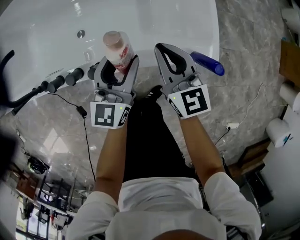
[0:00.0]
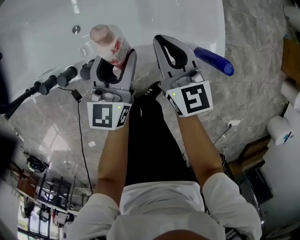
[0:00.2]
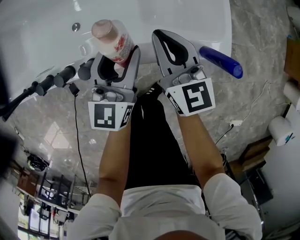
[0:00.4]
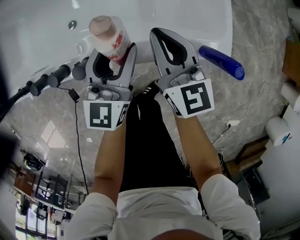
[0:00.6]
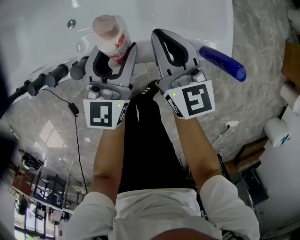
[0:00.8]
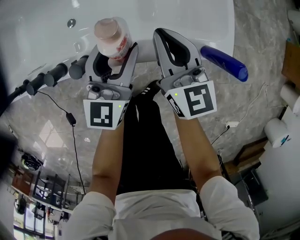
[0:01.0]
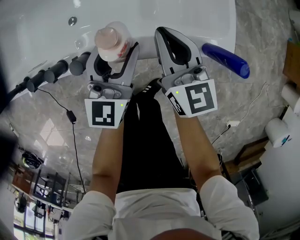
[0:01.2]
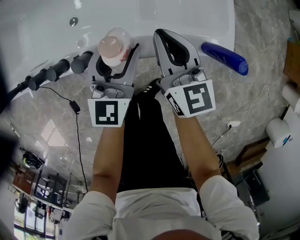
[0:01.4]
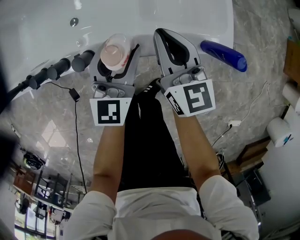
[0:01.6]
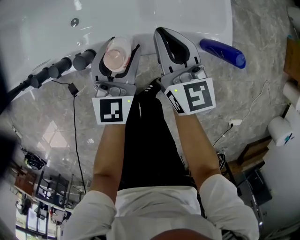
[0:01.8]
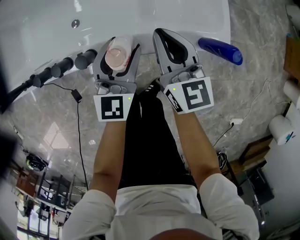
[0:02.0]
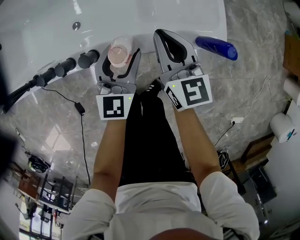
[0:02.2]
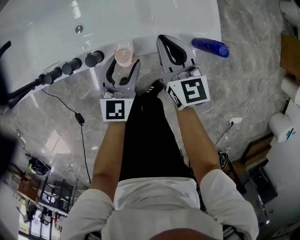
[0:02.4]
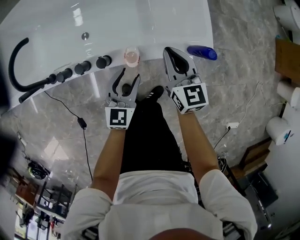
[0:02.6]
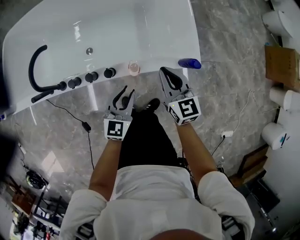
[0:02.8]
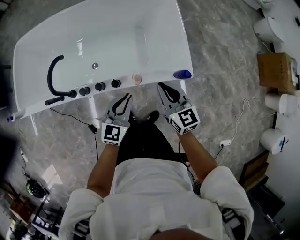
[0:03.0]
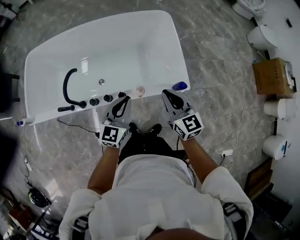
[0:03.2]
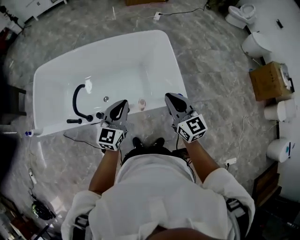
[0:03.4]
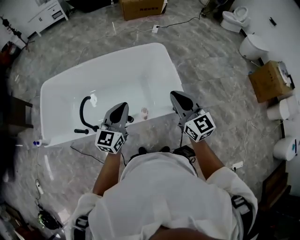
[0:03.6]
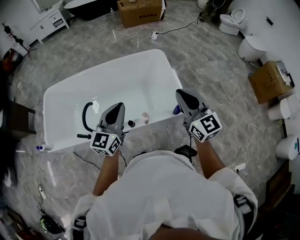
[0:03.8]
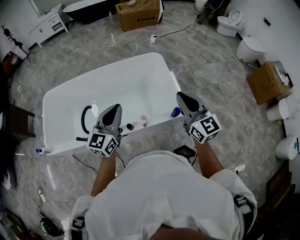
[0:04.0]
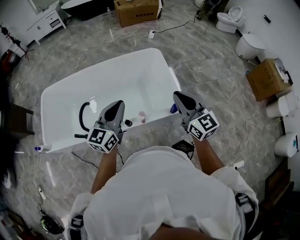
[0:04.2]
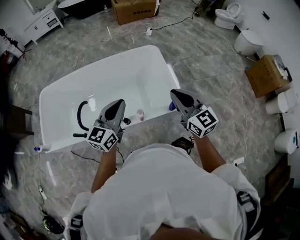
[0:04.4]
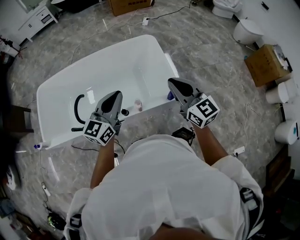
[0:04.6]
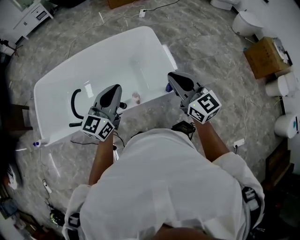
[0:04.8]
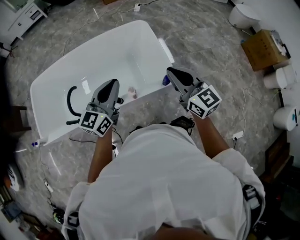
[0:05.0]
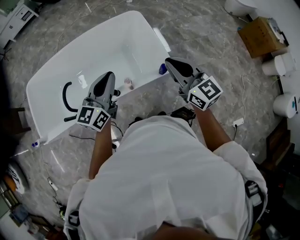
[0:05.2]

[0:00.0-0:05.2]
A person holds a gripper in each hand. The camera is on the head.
0:00.0 to 0:01.8: The grippers both shift downward by approximately 5 cm.
0:01.8 to 0:03.4: The two grippers go some 35 cm upward. The left gripper closes up.
0:03.4 to 0:05.2: The right gripper is displaced upward and to the right by about 10 cm. Meanwhile the left gripper heads upward, covering approximately 10 cm.

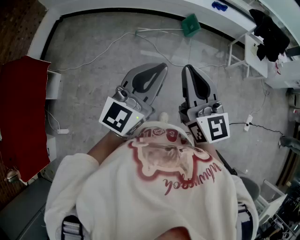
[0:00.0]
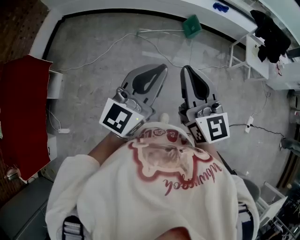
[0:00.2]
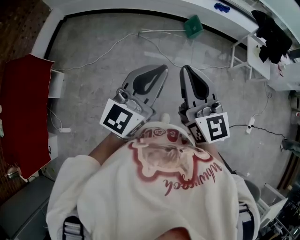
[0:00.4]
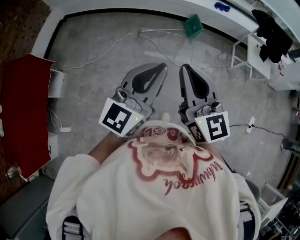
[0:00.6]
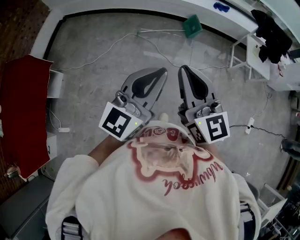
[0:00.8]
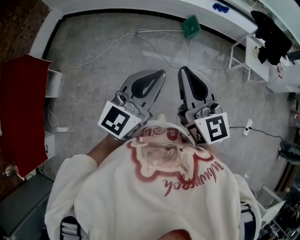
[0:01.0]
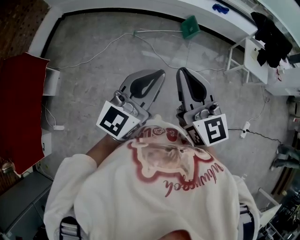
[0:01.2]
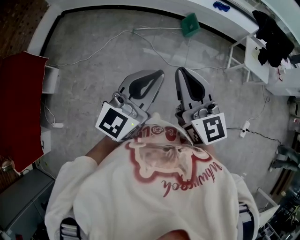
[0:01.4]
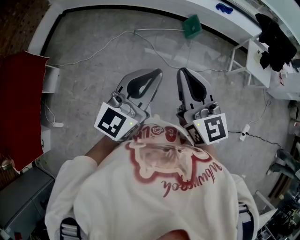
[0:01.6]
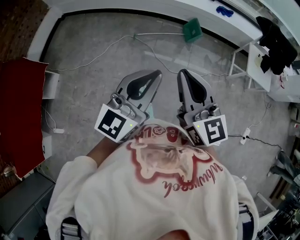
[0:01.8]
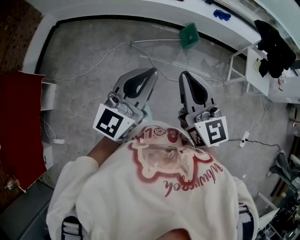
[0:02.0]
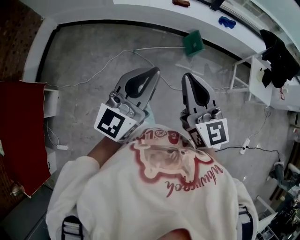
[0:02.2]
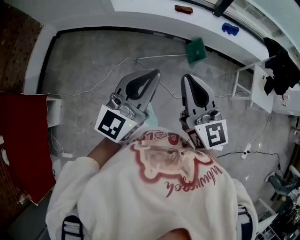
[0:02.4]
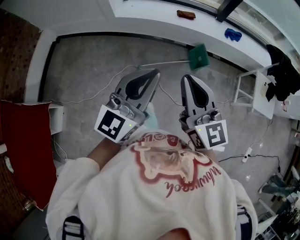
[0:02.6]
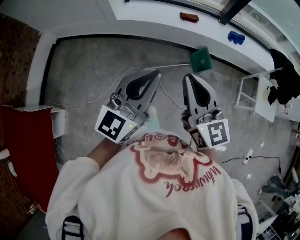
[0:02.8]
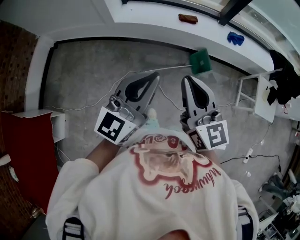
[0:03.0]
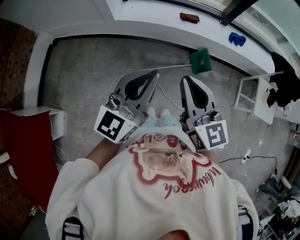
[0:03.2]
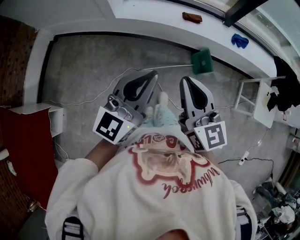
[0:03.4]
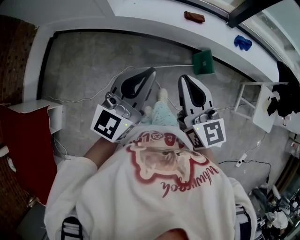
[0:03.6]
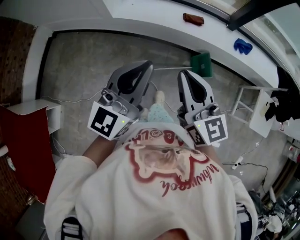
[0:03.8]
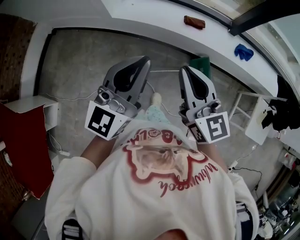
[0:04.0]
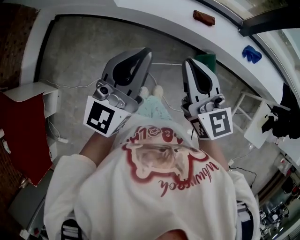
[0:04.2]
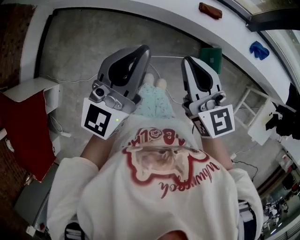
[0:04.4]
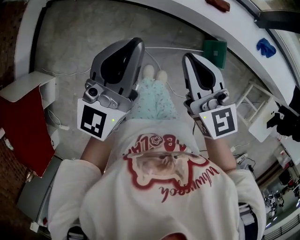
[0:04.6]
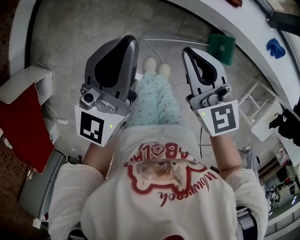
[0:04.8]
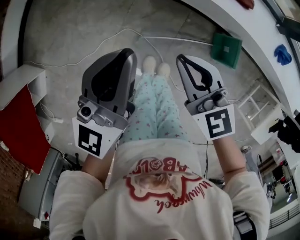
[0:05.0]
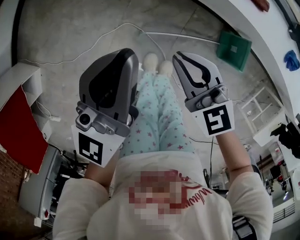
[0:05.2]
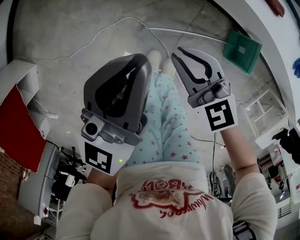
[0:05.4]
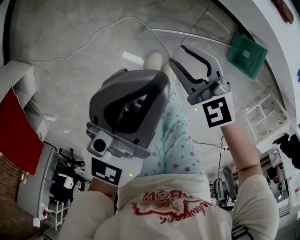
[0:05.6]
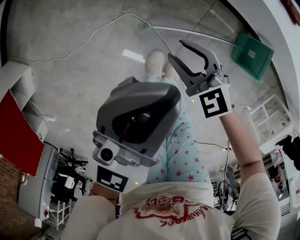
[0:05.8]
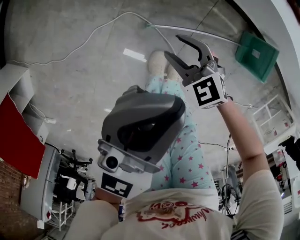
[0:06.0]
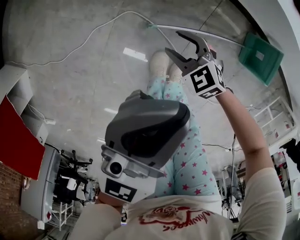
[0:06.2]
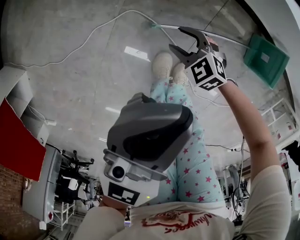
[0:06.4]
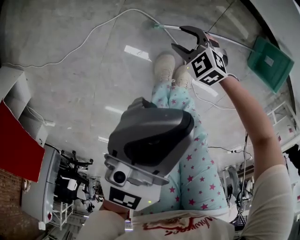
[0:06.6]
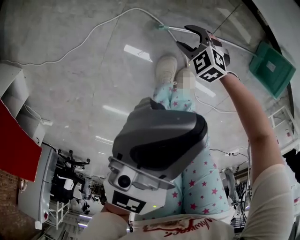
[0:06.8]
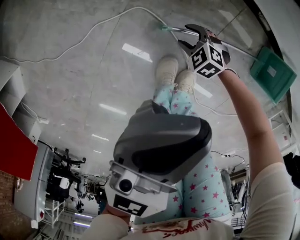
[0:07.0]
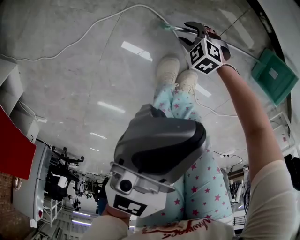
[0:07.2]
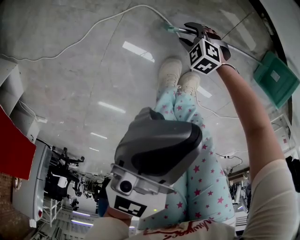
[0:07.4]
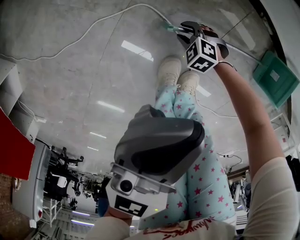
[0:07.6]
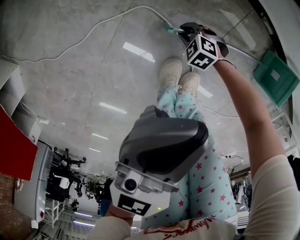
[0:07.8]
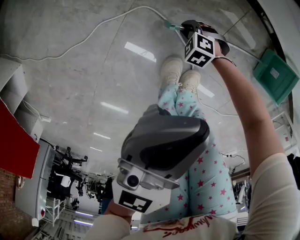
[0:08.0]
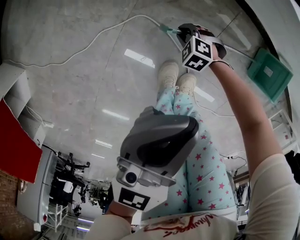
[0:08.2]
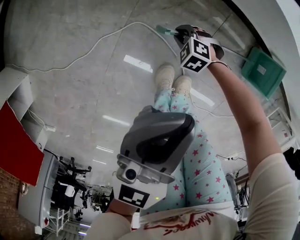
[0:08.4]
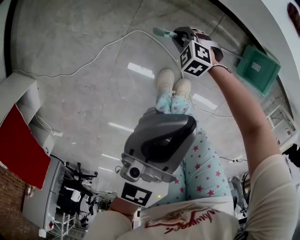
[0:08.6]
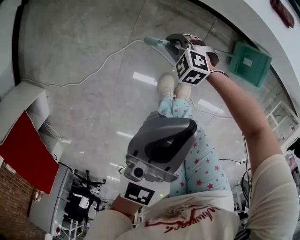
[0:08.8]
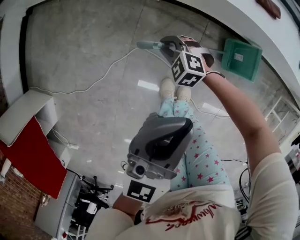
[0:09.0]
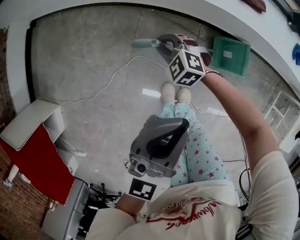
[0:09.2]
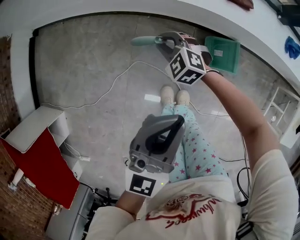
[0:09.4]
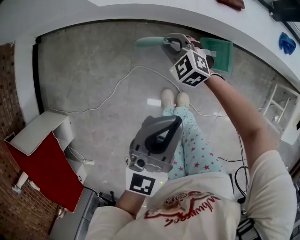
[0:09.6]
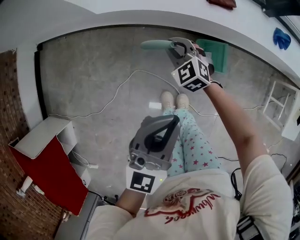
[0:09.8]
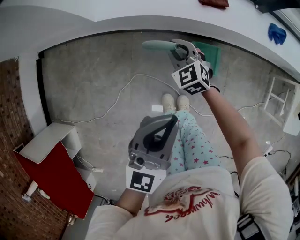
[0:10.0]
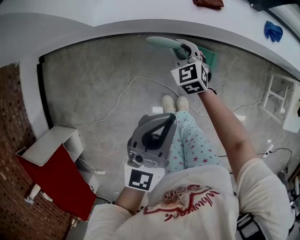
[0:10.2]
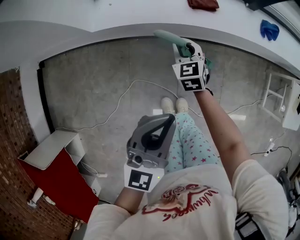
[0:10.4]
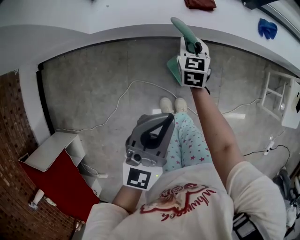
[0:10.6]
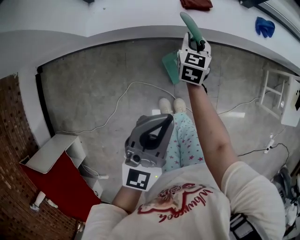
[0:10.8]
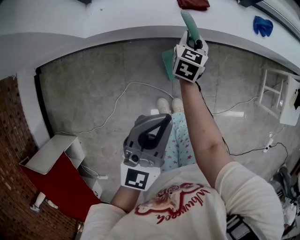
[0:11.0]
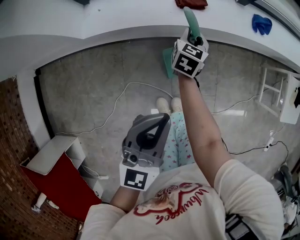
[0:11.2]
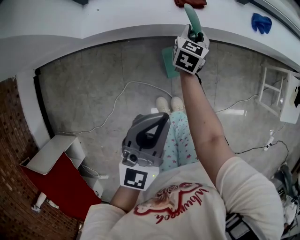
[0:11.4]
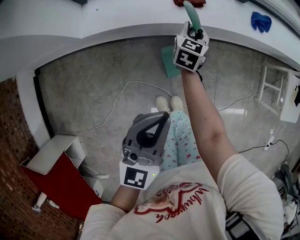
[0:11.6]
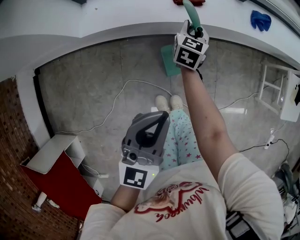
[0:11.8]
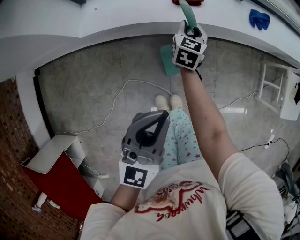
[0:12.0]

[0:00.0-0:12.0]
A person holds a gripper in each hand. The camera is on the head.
0:00.0 to 0:01.6: Both grippers travel together to the right, about 10 cm.
0:01.6 to 0:03.0: The pair of grippers is taken forward, roughly 50 cm.
0:03.0 to 0:04.4: The two grippers go some 25 cm forward.
0:04.4 to 0:06.0: The left gripper is displaced downward by about 35 cm. The right gripper travels downward by about 60 cm, points its fingers about 30 degrees further downward, and opens.
0:06.0 to 0:07.6: The right gripper is displaced downward by some 30 cm, and changes its angle by about 40 degrees; the left gripper goes roughly 15 cm downward and to the left.
0:07.6 to 0:09.0: The right gripper moves upward, roughly 30 cm, and closes its fingers. The left gripper heads upward and to the right, covering some 20 cm.
0:09.0 to 0:10.4: The right gripper ends up some 30 cm from where it was, and swivels roughly 60 degrees, while the left gripper is displaced upward by about 10 cm, and turns by approximately 20 degrees.
0:10.4 to 0:12.0: The right gripper goes approximately 15 cm forward and to the right, and rotates approximately 40 degrees.

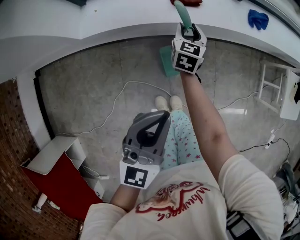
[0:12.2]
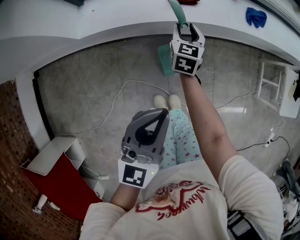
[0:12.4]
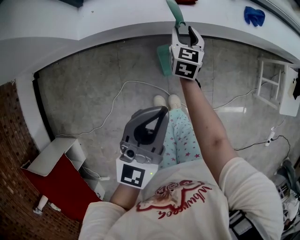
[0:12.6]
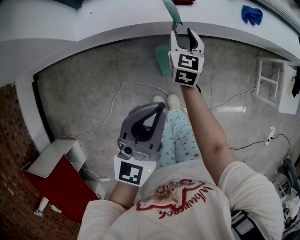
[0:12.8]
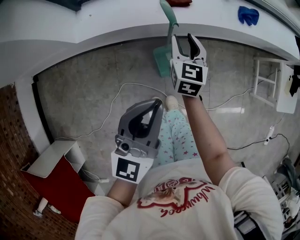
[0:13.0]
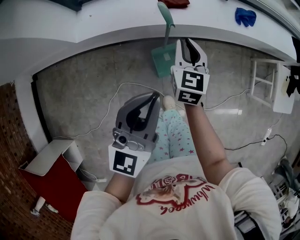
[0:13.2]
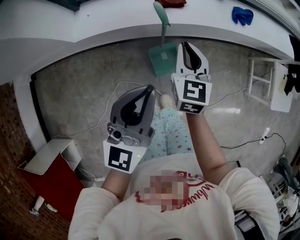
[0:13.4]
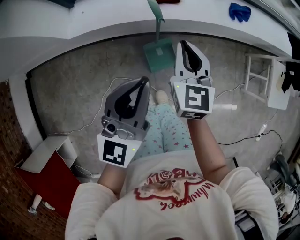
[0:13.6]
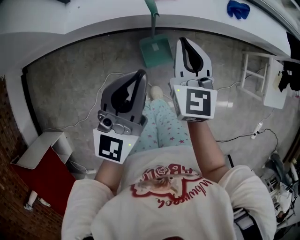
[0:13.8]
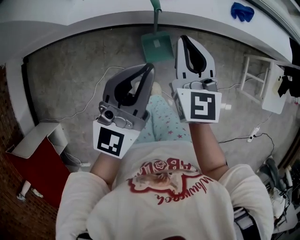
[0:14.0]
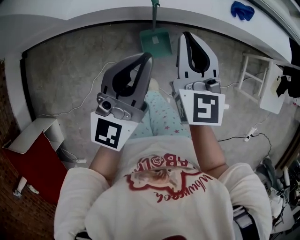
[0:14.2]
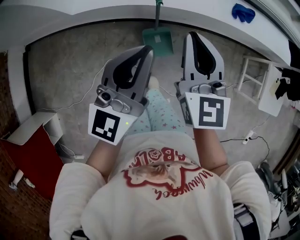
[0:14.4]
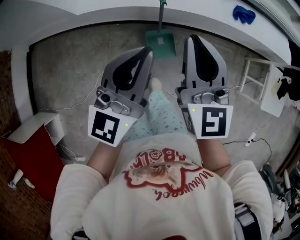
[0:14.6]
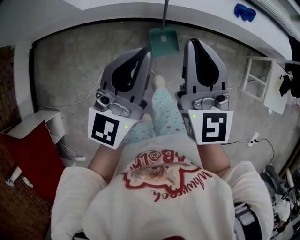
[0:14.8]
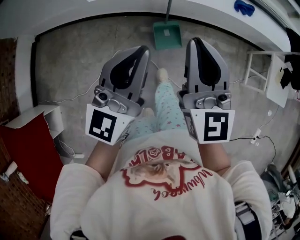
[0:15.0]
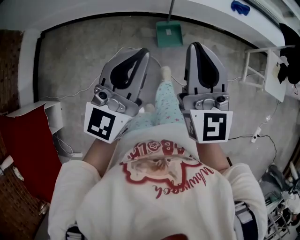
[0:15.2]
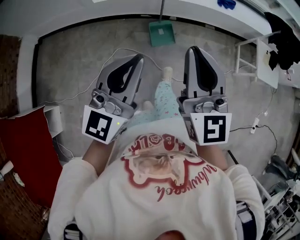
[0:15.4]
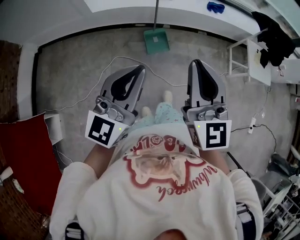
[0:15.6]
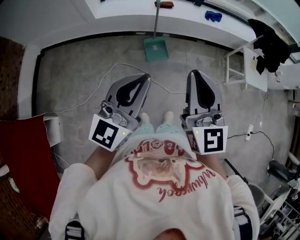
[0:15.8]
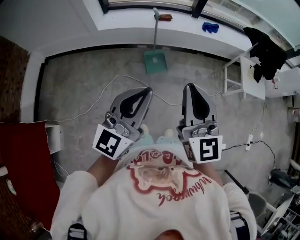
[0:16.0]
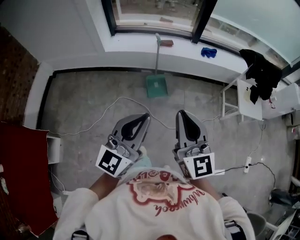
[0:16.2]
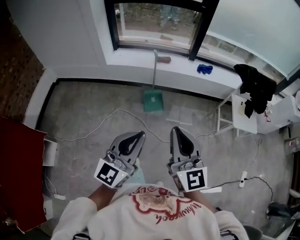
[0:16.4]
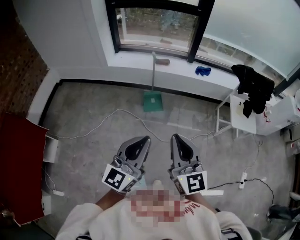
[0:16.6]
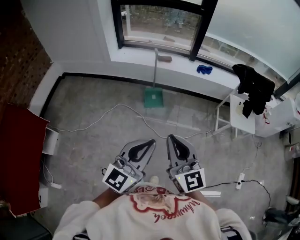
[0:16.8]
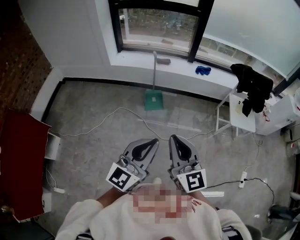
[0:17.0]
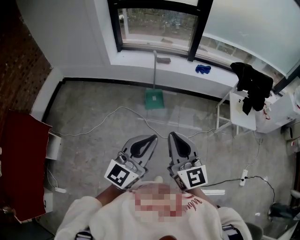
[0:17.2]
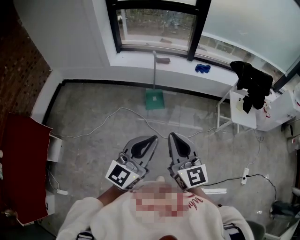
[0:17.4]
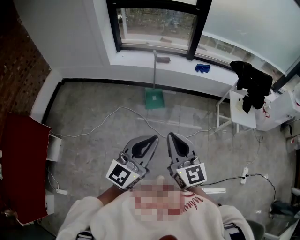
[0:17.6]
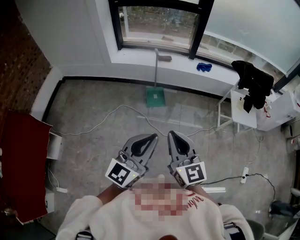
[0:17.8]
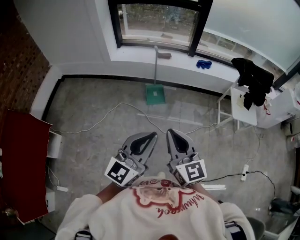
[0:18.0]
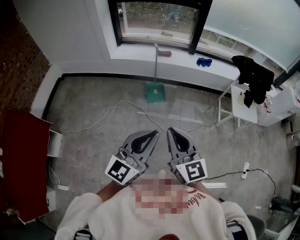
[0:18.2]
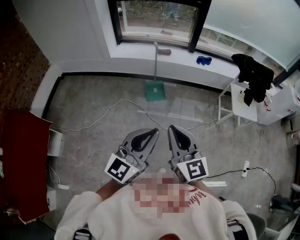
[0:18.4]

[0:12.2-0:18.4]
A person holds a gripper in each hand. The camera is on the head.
0:12.2 to 0:13.8: The left gripper is displaced upward by some 5 cm. The right gripper travels upward and backward by about 25 cm, and closes up.
0:13.8 to 0:15.4: The right gripper moves backward and upward, some 50 cm, and rotates some 20 degrees, while the left gripper heads backward, covering approximately 35 cm.
0:15.4 to 0:16.8: The two grippers go about 35 cm backward and to the right.
0:16.8 to 0:18.4: The grippers make only small movements.
